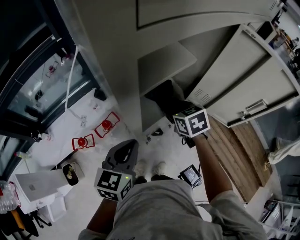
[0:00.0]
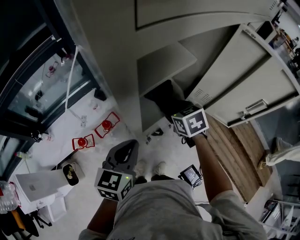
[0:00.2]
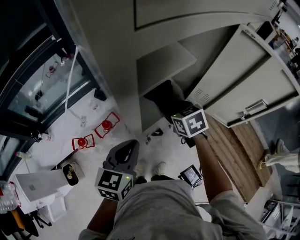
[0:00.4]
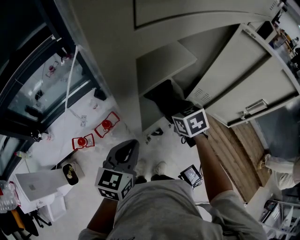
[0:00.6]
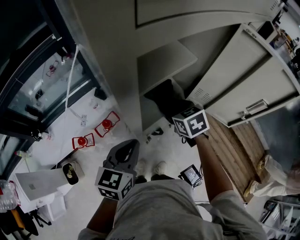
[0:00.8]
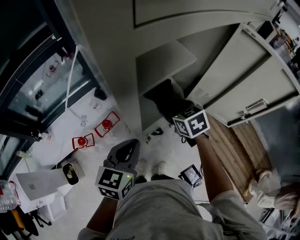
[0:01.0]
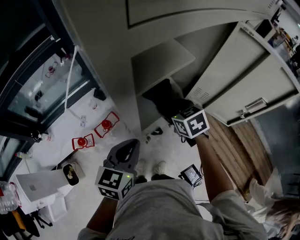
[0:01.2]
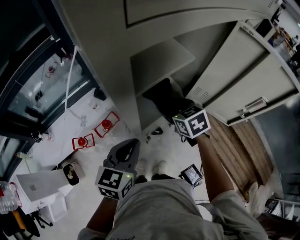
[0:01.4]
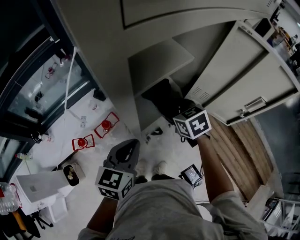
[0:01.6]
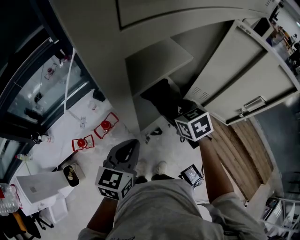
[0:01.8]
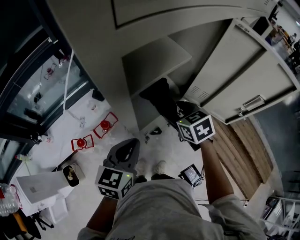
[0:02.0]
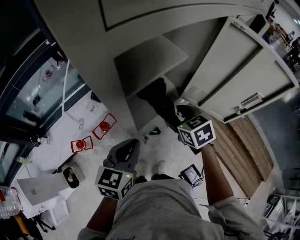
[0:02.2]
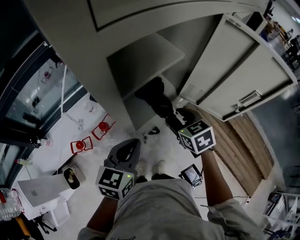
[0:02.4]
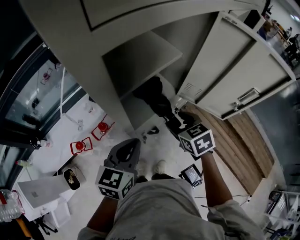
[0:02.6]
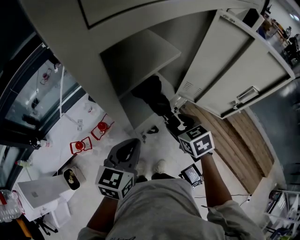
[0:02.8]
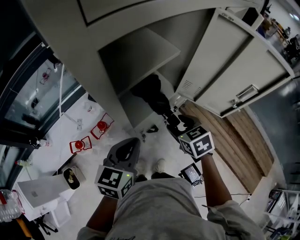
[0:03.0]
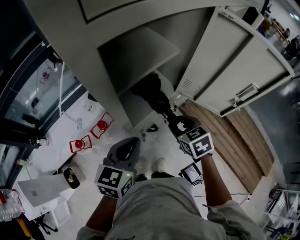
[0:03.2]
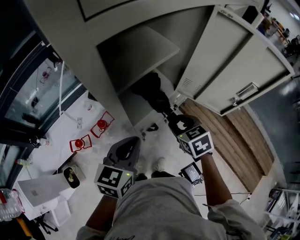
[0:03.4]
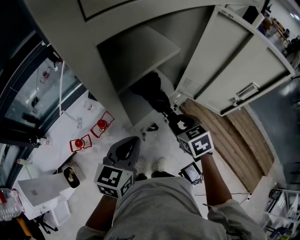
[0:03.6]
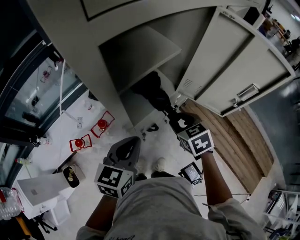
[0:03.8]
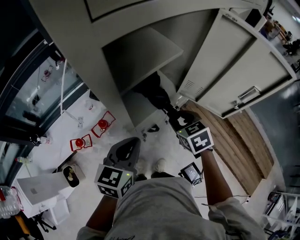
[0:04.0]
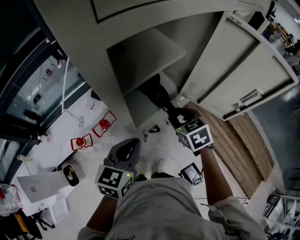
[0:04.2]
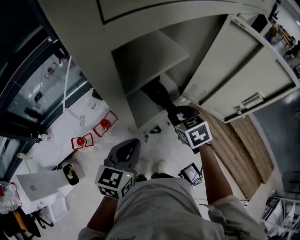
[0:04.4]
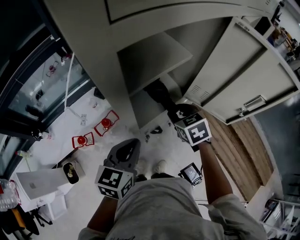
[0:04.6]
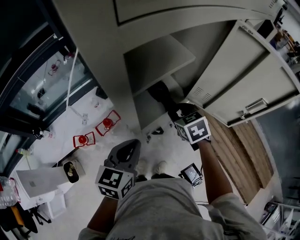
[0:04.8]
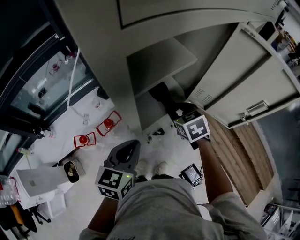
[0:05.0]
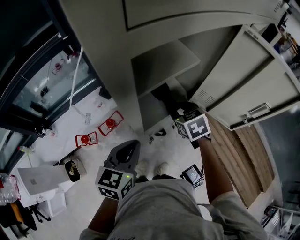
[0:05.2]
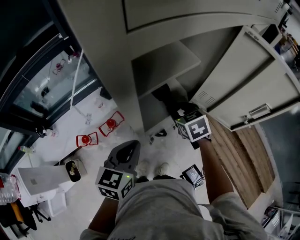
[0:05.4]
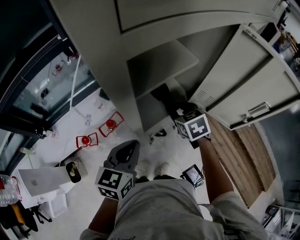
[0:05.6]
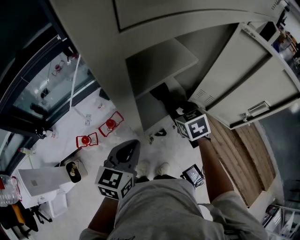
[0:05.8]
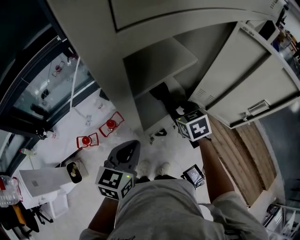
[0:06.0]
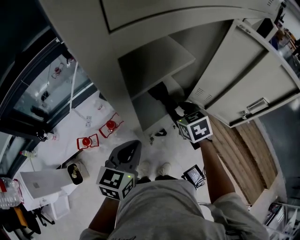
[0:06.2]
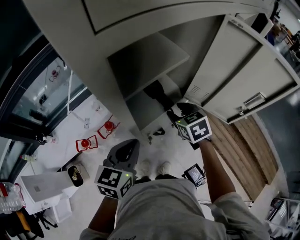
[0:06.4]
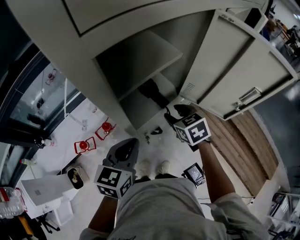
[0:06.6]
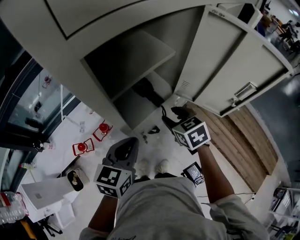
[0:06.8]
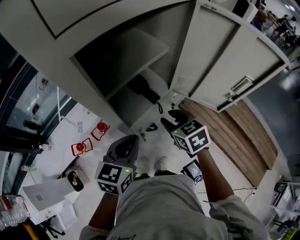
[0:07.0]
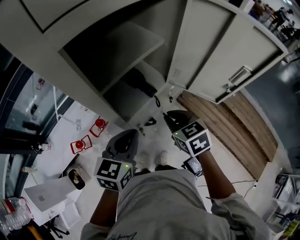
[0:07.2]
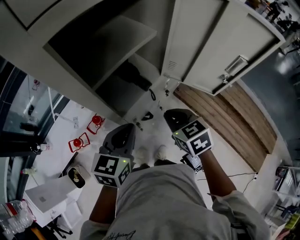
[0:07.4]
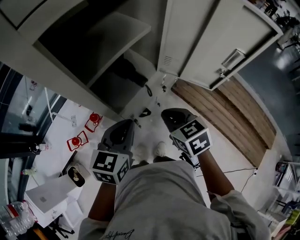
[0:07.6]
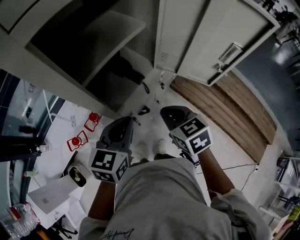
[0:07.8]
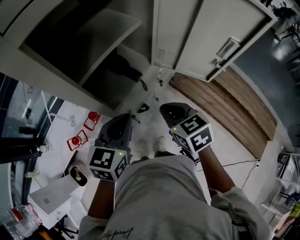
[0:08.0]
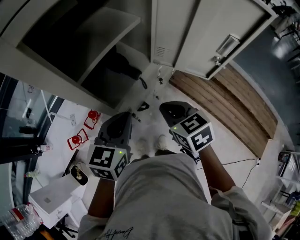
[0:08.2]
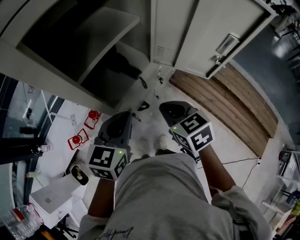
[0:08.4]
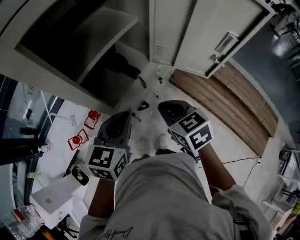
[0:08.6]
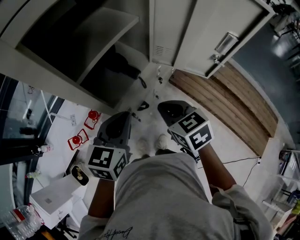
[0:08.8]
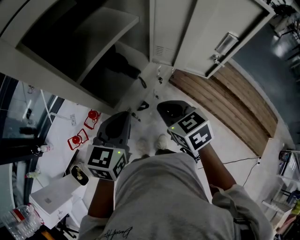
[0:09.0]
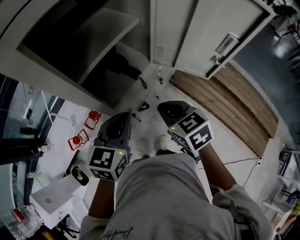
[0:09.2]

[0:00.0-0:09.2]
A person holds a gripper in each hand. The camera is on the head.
0.0 to 1.6 s: The grippers move only a little.
1.6 to 3.0 s: The right gripper goes roughly 10 cm backward.
3.0 to 4.6 s: The right gripper travels forward by roughly 5 cm.
4.6 to 6.2 s: The grippers stay close to where they were, moving slightly.
6.2 to 7.6 s: The left gripper goes approximately 5 cm to the right. Meanwhile the right gripper is displaced backward by roughly 15 cm, and closes.
7.6 to 9.2 s: The grippers move only a little.

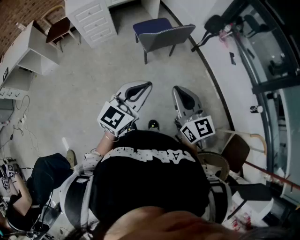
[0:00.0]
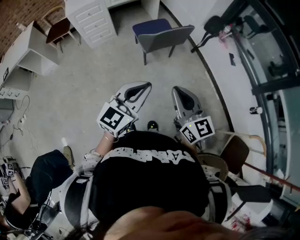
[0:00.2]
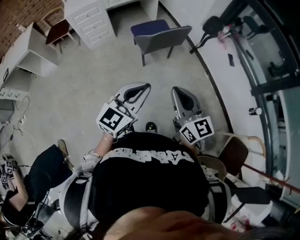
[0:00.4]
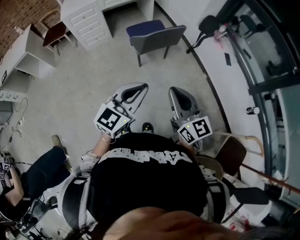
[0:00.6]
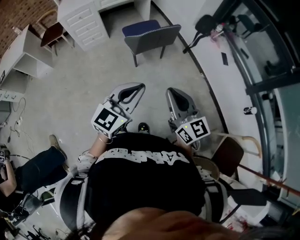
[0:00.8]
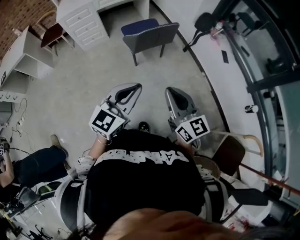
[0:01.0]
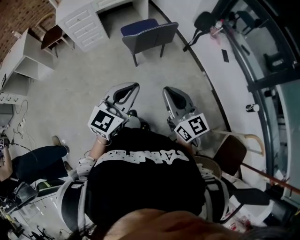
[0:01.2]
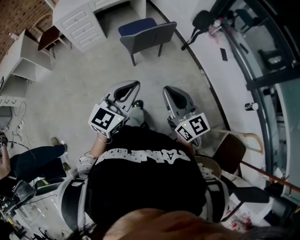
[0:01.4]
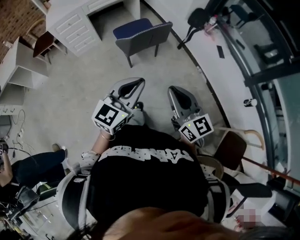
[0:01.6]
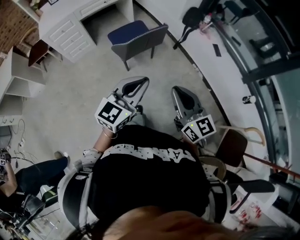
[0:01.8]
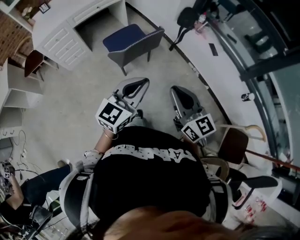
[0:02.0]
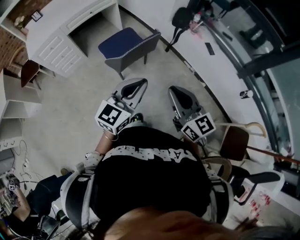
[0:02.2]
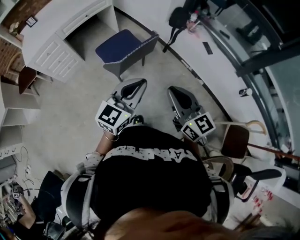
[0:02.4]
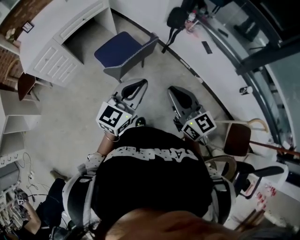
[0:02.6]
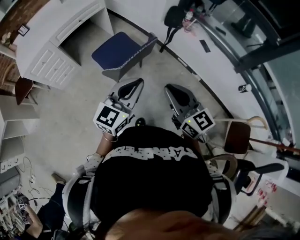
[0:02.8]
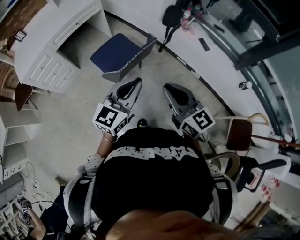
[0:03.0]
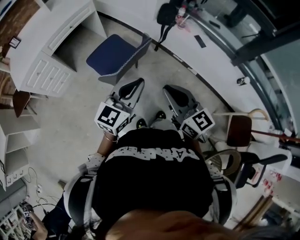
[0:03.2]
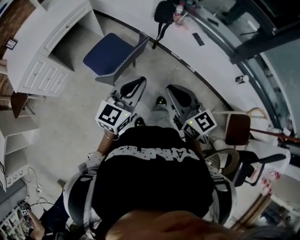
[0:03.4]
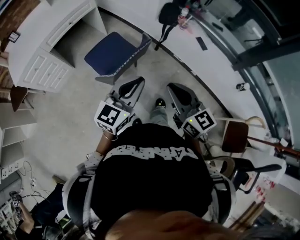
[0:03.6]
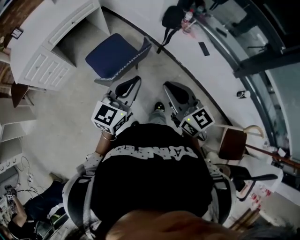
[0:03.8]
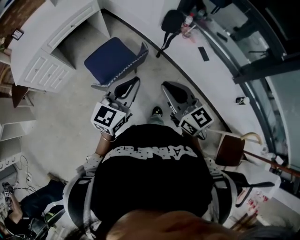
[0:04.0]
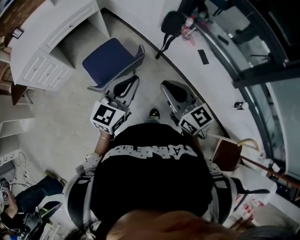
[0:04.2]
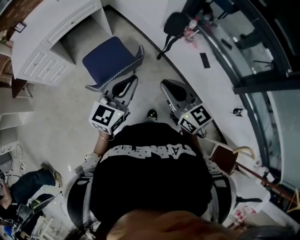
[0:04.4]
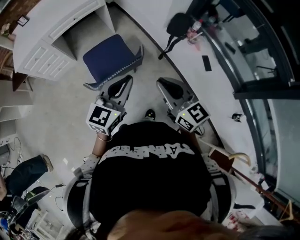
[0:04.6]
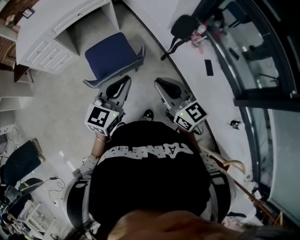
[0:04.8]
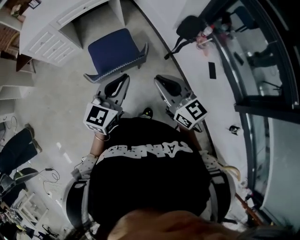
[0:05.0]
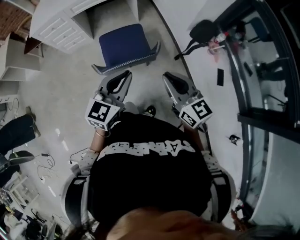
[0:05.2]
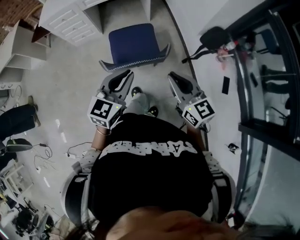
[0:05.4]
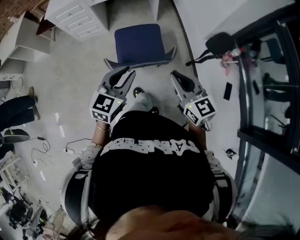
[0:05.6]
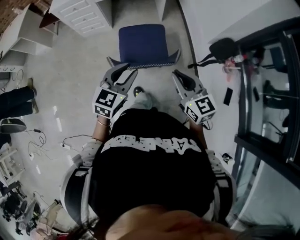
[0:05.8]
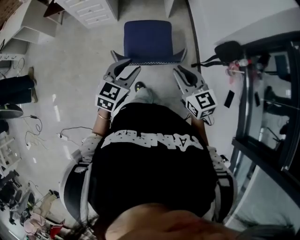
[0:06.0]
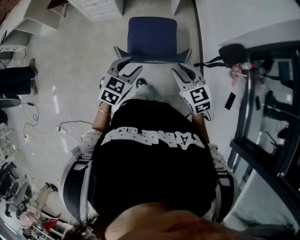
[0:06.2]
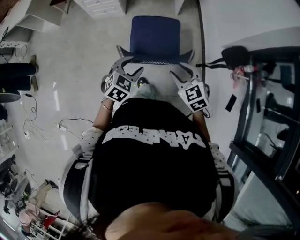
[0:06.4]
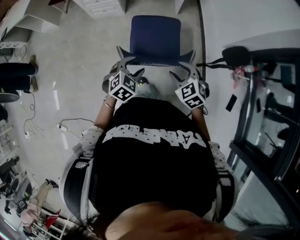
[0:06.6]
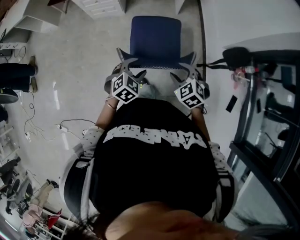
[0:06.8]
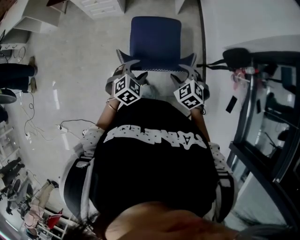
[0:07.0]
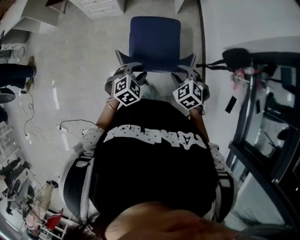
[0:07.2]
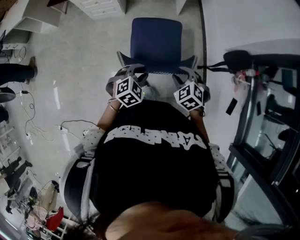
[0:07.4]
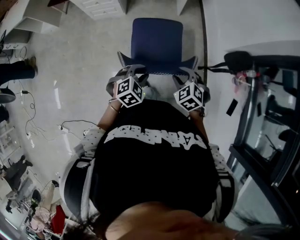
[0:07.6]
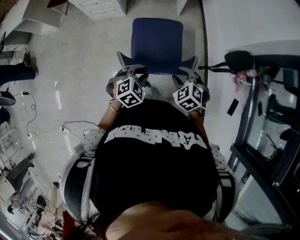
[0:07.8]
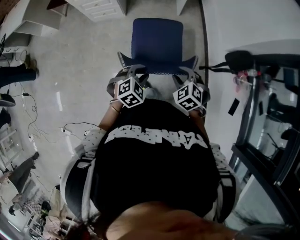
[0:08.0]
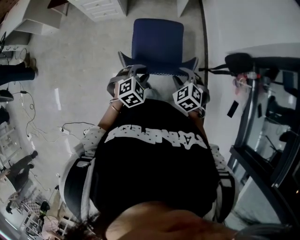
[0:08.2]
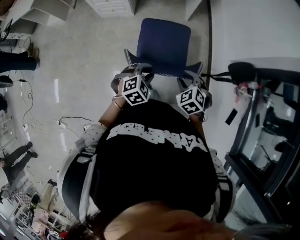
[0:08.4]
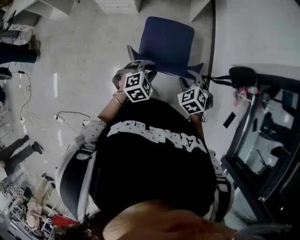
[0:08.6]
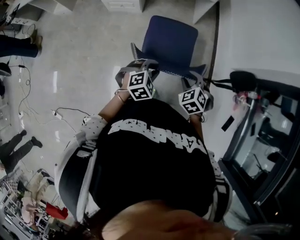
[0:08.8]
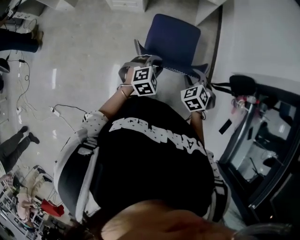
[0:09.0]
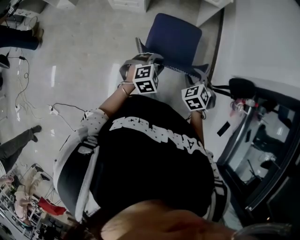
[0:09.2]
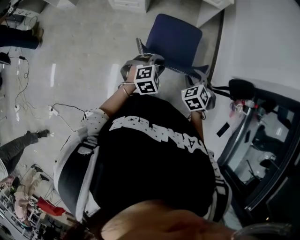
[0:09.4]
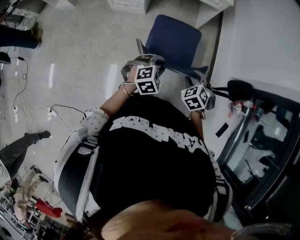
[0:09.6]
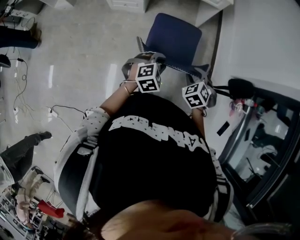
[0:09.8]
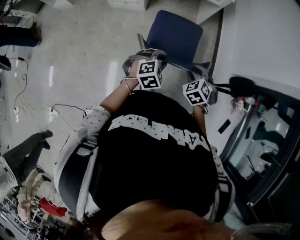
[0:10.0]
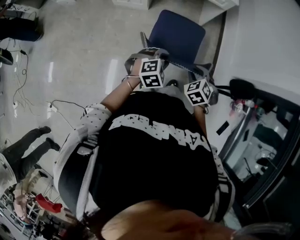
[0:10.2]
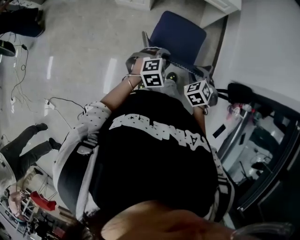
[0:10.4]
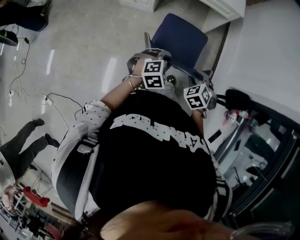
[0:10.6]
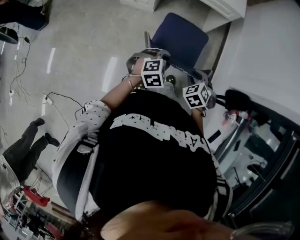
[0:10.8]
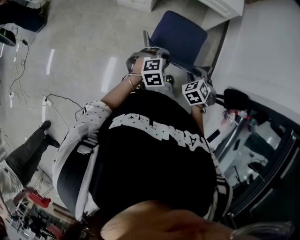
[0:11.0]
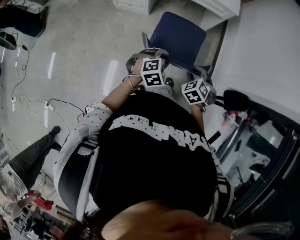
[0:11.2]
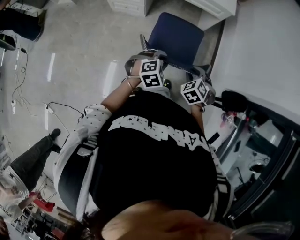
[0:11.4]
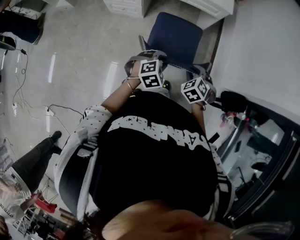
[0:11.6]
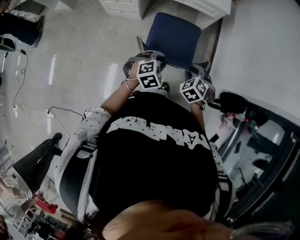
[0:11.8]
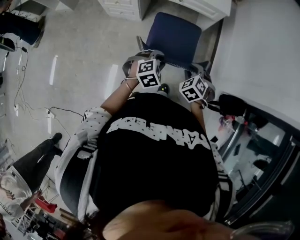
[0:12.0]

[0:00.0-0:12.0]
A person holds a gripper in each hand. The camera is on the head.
0.0 to 1.6 s: The right gripper goes about 10 cm to the right. Meanwhile the left gripper travels to the right and forward by some 10 cm.
1.6 to 3.0 s: The left gripper is displaced forward by some 20 cm. Meanwhile the right gripper heads forward and to the left, covering about 20 cm.
3.0 to 4.4 s: Both grippers move forward and to the right, roughly 20 cm.
4.4 to 6.0 s: The left gripper changes place by about 15 cm, turns by roughly 40 degrees, and opens. Meanwhile the right gripper moves about 15 cm, and turns by some 30 degrees.
6.0 to 7.6 s: The left gripper shifts approximately 15 cm downward, and swivels about 30 degrees; the right gripper moves downward and forward, some 15 cm, tilts its fingers some 40 degrees downward, and opens up.
7.6 to 9.0 s: The grippers both shift forward by approximately 5 cm.
9.0 to 10.4 s: The left gripper moves about 5 cm, while the right gripper changes place by some 5 cm.
10.4 to 12.0 s: The grippers both shift forward by some 15 cm.

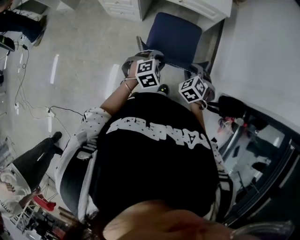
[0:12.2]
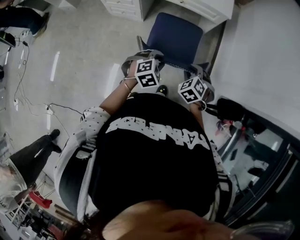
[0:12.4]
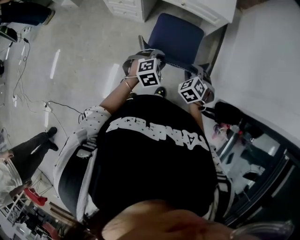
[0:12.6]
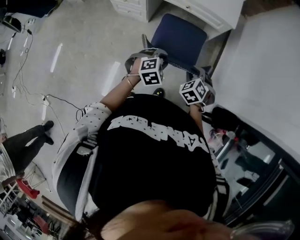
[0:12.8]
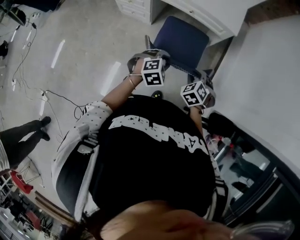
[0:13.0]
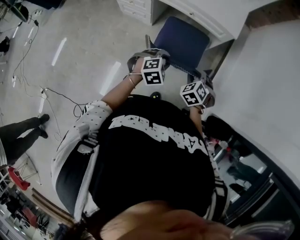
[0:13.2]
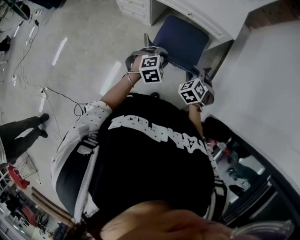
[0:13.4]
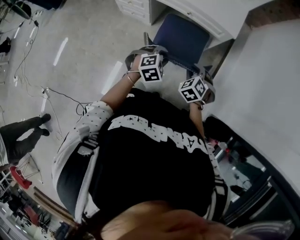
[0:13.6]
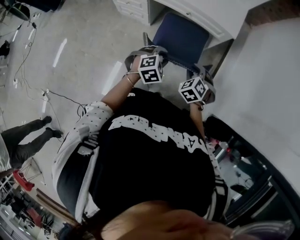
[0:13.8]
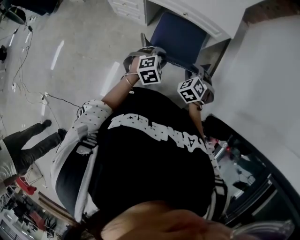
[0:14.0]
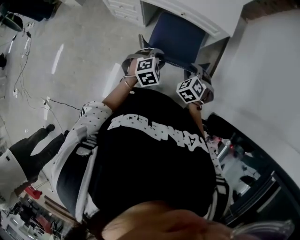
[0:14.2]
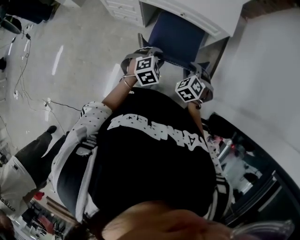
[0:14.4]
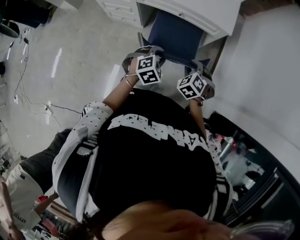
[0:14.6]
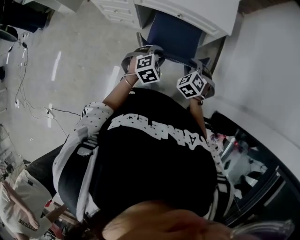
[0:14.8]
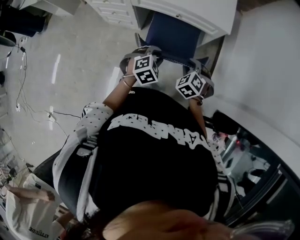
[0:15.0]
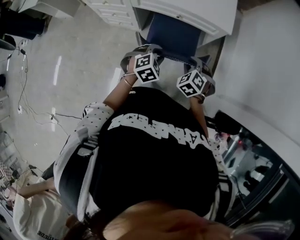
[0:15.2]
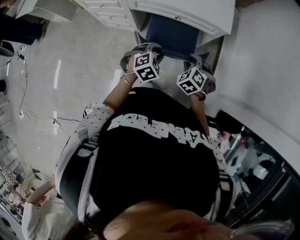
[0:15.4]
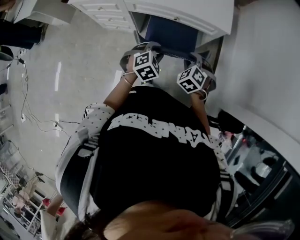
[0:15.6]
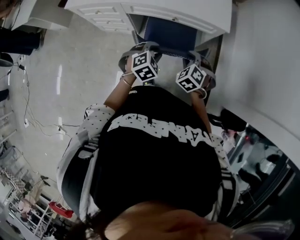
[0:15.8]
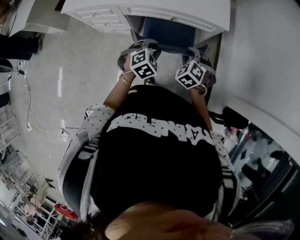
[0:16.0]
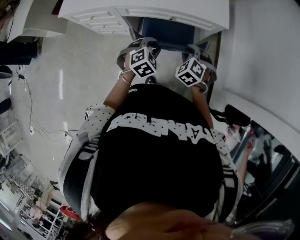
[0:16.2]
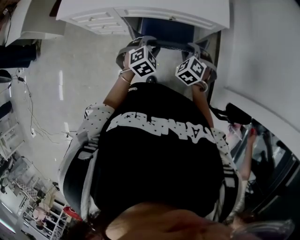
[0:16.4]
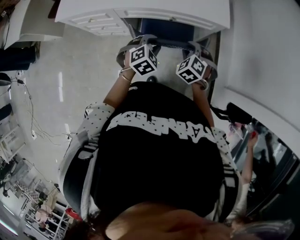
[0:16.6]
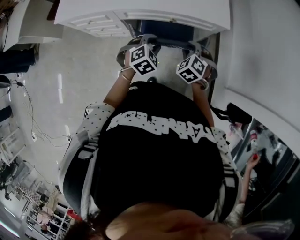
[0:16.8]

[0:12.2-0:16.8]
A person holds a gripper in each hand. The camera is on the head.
12.2 to 13.8 s: The two grippers go approximately 10 cm forward.
13.8 to 15.2 s: The grippers both shift forward and to the left by roughly 10 cm.
15.2 to 16.8 s: The grippers both shift forward and to the left by about 15 cm.
